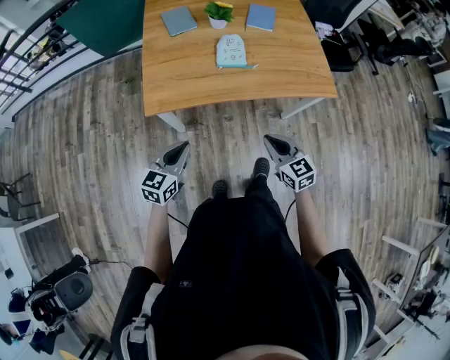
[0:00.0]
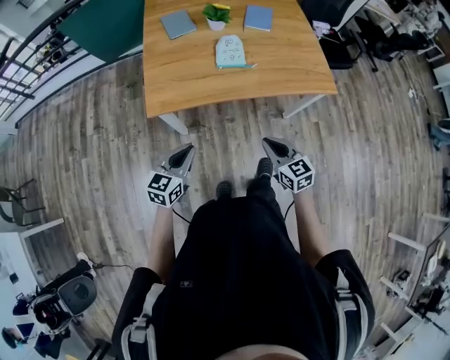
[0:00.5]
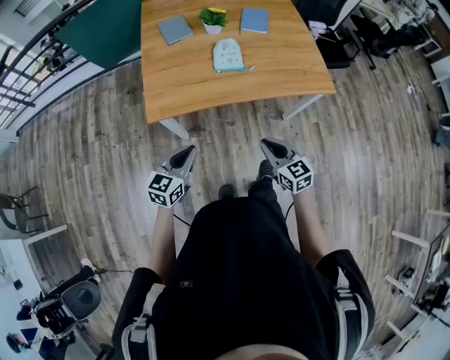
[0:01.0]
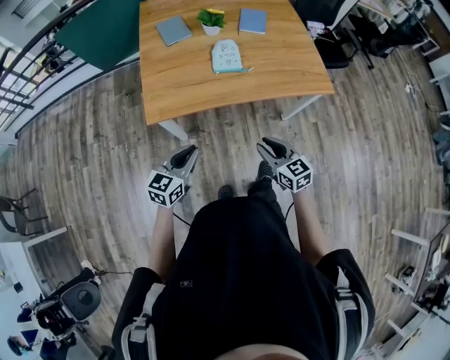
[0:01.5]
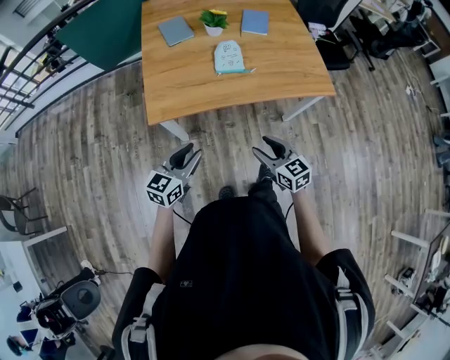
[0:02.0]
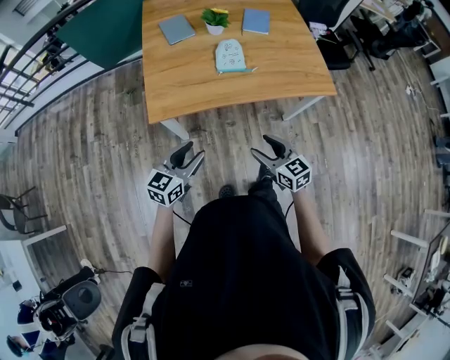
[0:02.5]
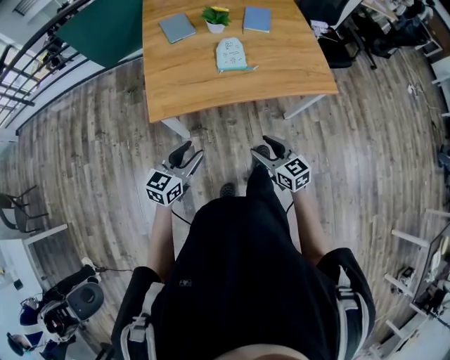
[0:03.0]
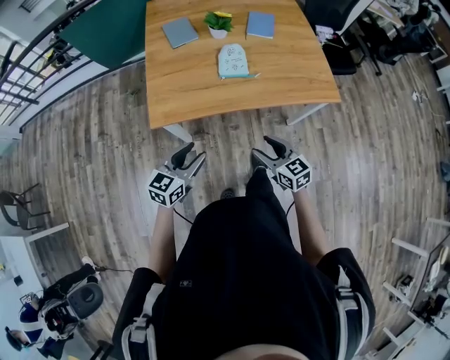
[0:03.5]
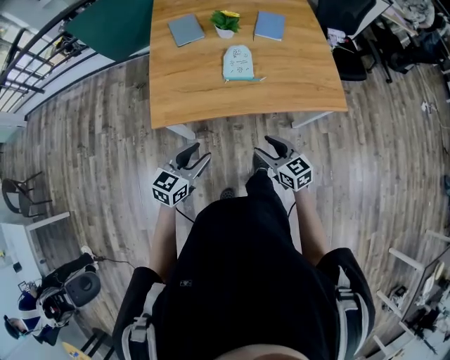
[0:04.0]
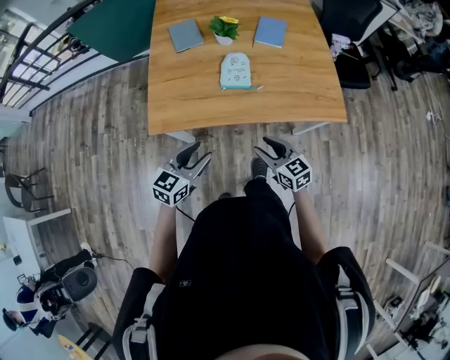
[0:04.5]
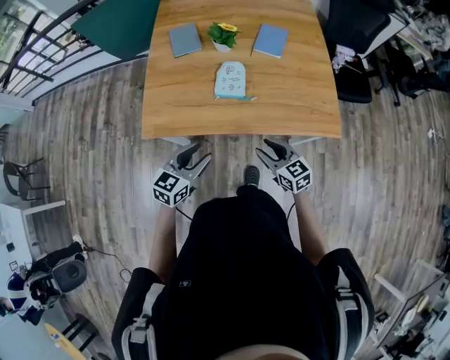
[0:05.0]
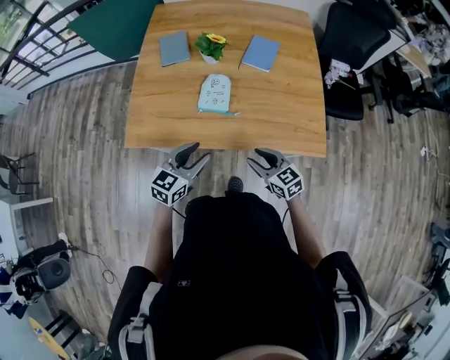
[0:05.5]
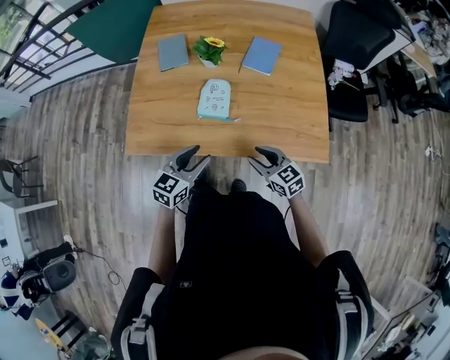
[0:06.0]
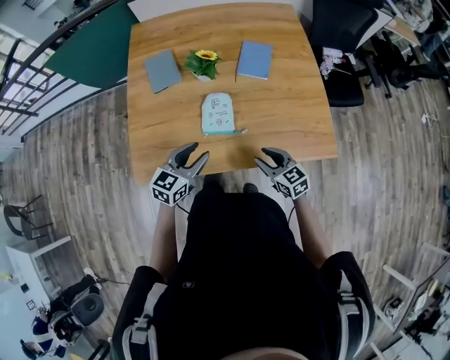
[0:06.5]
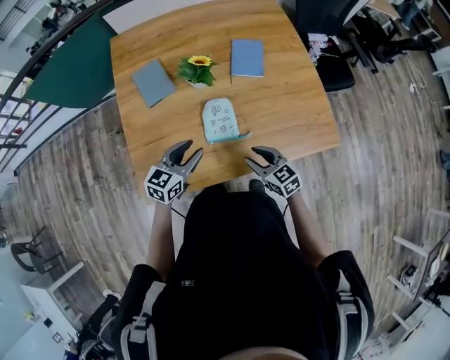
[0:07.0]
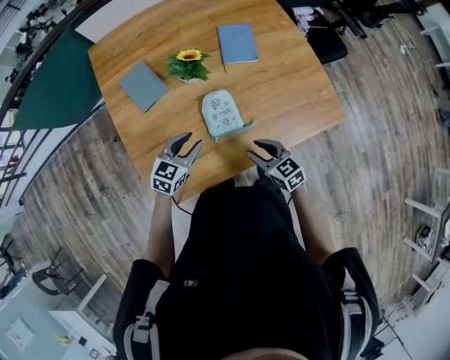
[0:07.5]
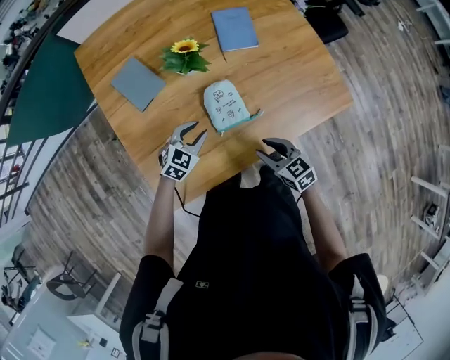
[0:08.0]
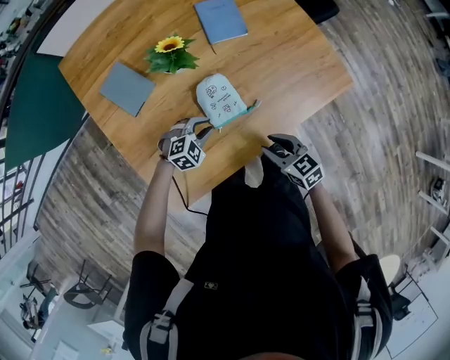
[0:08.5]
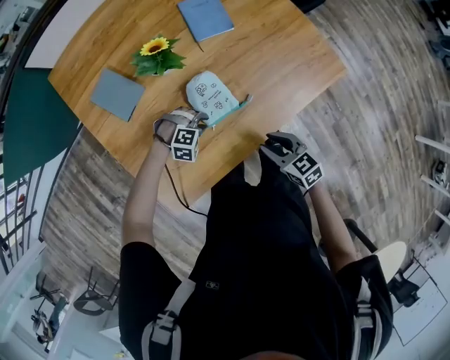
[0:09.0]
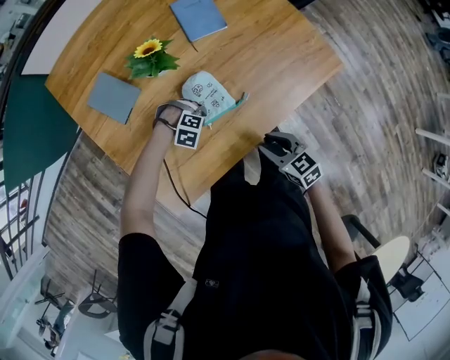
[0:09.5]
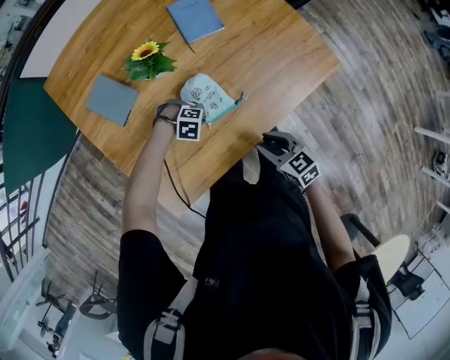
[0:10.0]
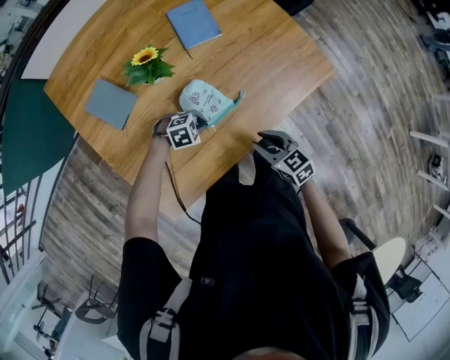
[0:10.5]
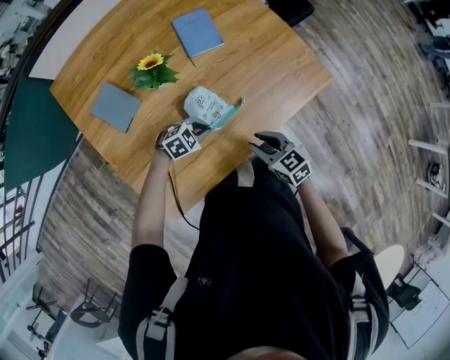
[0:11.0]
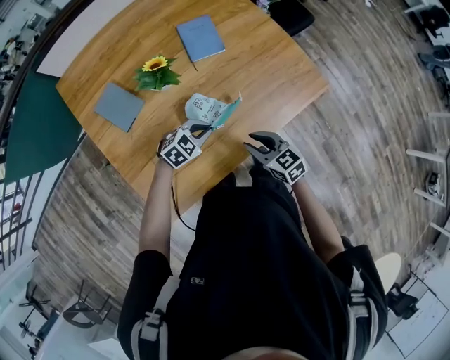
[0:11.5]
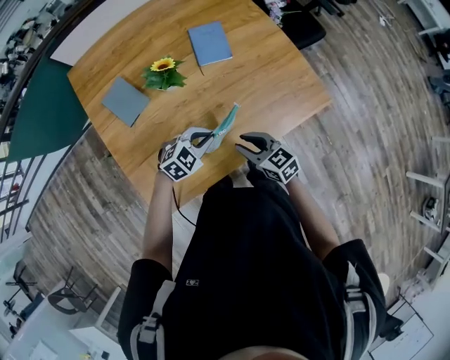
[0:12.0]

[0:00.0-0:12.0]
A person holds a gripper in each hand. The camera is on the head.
0:00.0 to 0:02.0: The right gripper opens up; the left gripper opens its fingers.
0:02.0 to 0:04.0: The two grippers go approximately 5 cm forward.
0:04.0 to 0:06.0: The right gripper travels forward and to the right by approximately 20 cm; the left gripper moves to the right and forward, some 25 cm.
0:06.0 to 0:08.0: The right gripper moves about 15 cm, and rotates approximately 30 degrees; the left gripper shifts by about 30 cm, and changes its angle by roughly 50 degrees.
0:08.0 to 0:10.0: The left gripper moves downward, roughly 10 cm, tilts its fingers some 30 degrees downward, and closes its fingers.
0:10.0 to 0:12.0: The right gripper moves some 10 cm, while the left gripper travels upward by approximately 20 cm, and changes its angle by approximately 60 degrees.

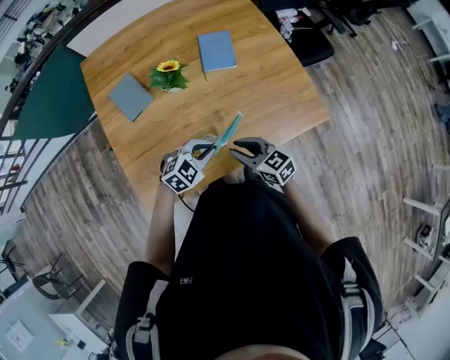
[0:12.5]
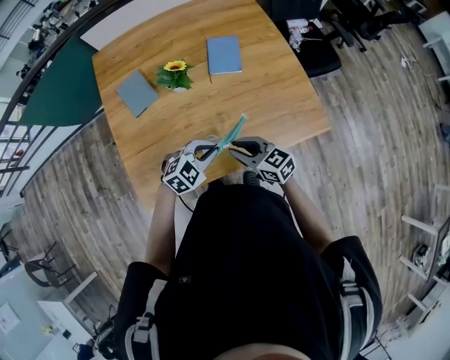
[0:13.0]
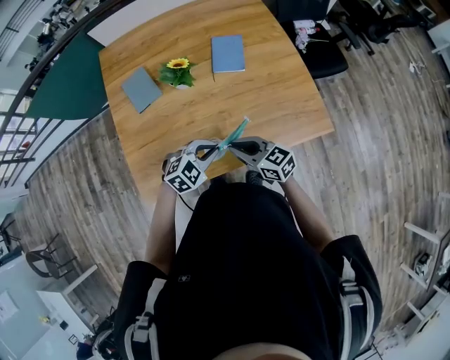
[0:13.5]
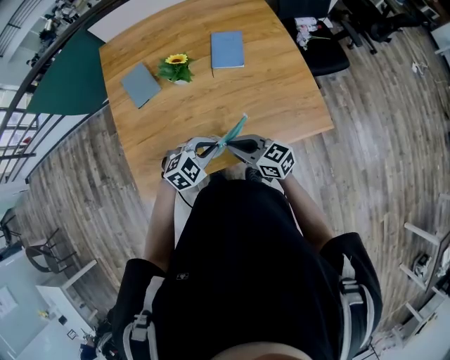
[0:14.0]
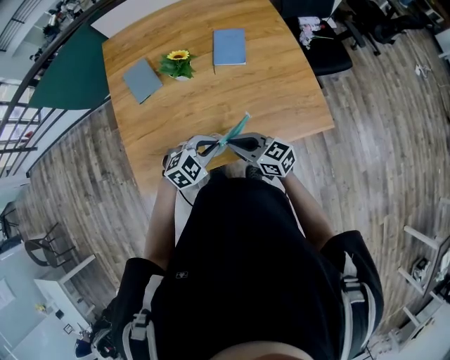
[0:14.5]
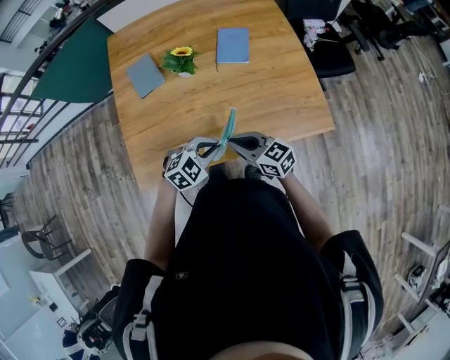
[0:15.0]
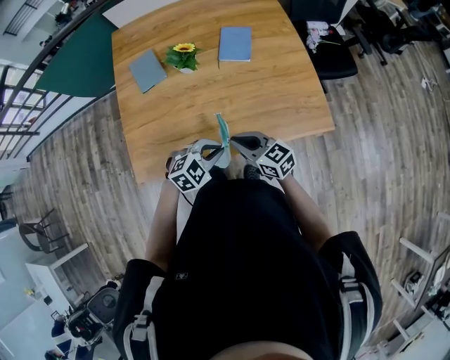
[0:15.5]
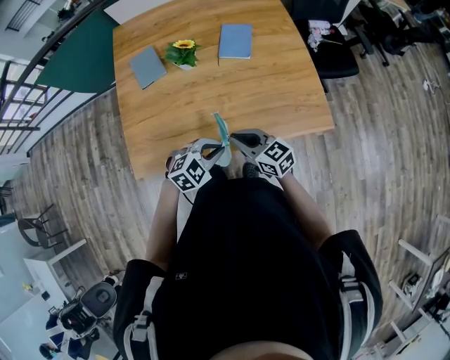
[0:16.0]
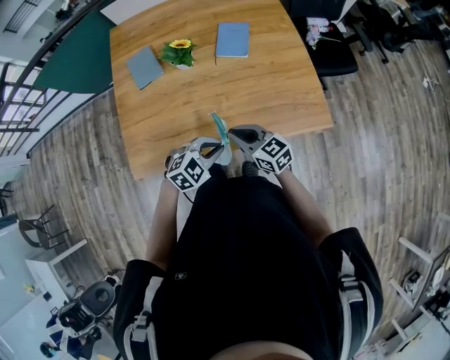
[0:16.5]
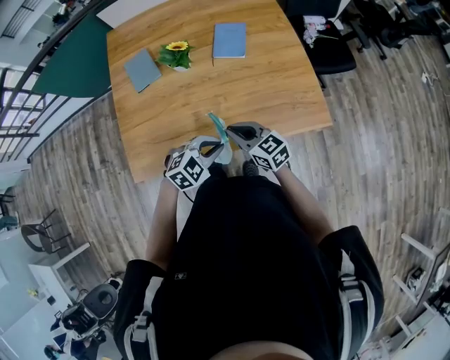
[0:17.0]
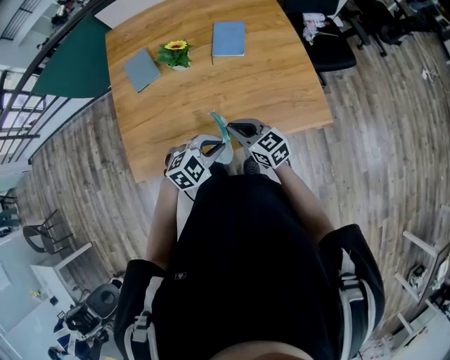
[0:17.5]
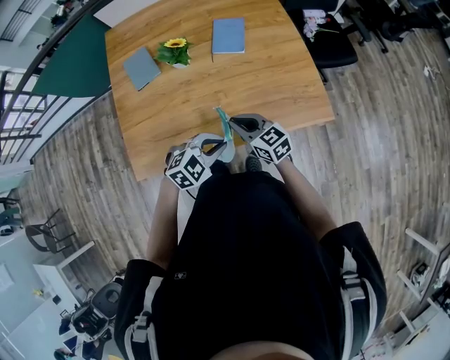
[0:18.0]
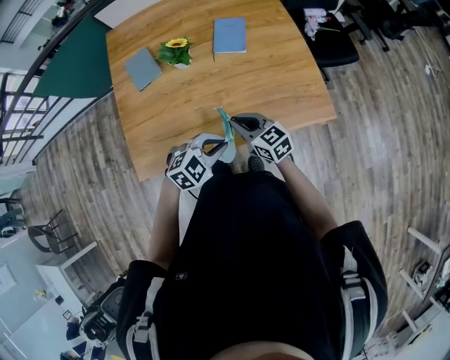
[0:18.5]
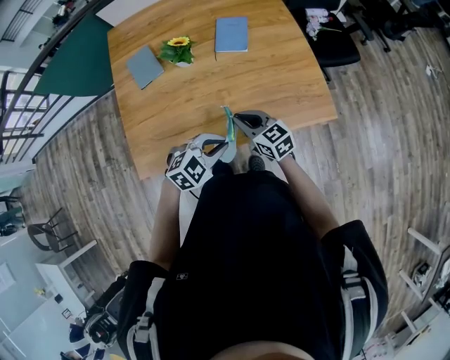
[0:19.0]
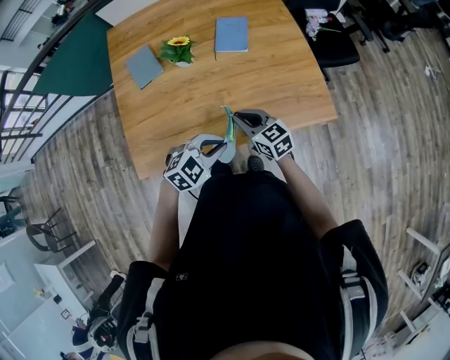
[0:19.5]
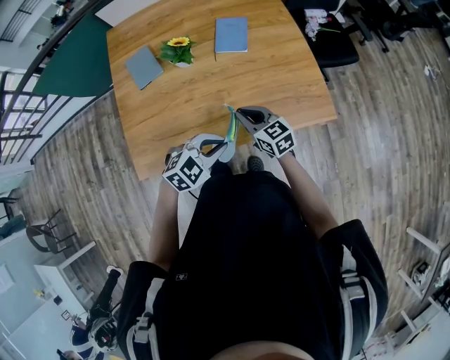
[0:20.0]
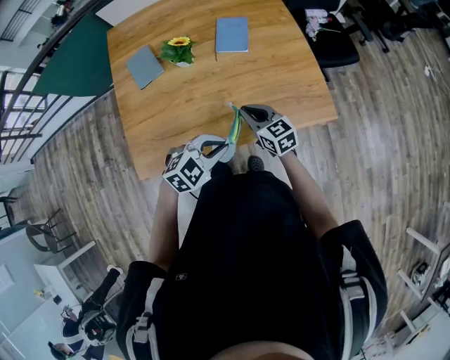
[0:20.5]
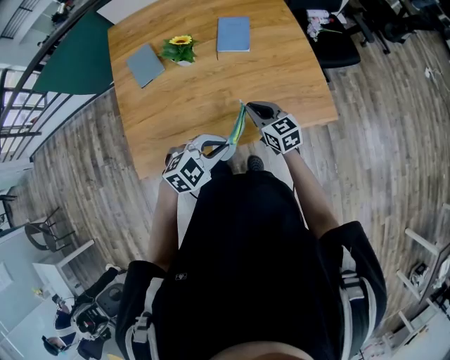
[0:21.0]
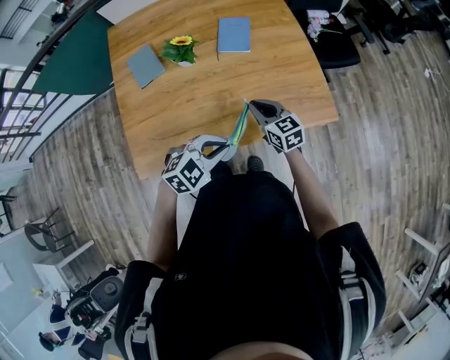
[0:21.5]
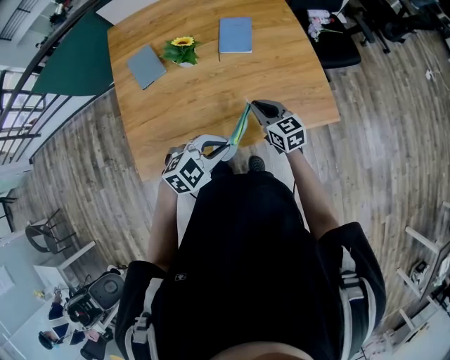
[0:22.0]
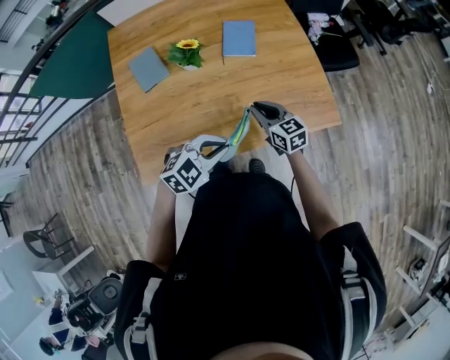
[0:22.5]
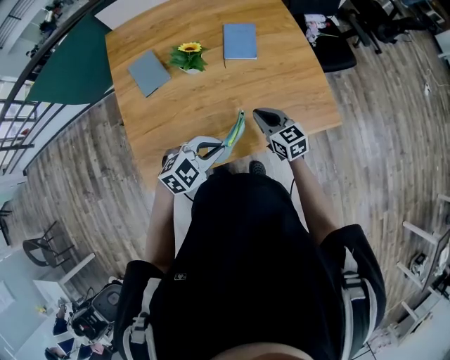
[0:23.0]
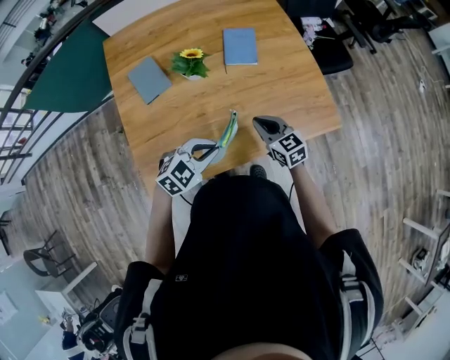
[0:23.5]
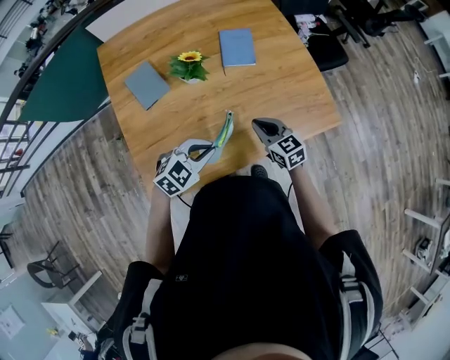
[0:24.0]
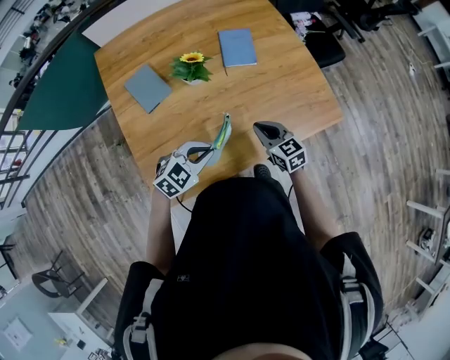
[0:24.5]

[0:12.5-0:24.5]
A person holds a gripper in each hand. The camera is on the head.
0:12.5 to 0:14.5: The left gripper moves roughly 5 cm.
0:14.5 to 0:16.5: The left gripper changes place by roughly 5 cm.
0:16.5 to 0:18.5: The grippers make only small movements.
0:18.5 to 0:20.5: The grippers move only a little.
0:20.5 to 0:22.5: There are only small adjustments of the grippers.
0:22.5 to 0:24.5: The left gripper shifts approximately 15 cm to the left. Meanwhile the right gripper heads to the left, covering approximately 5 cm.

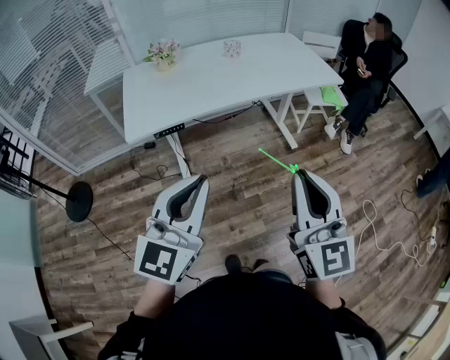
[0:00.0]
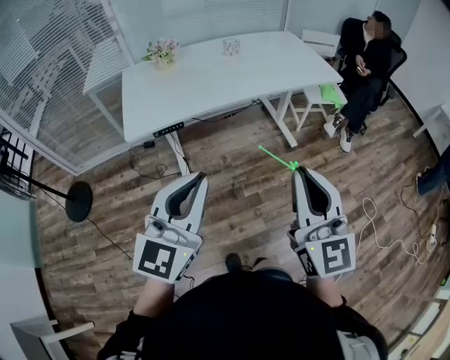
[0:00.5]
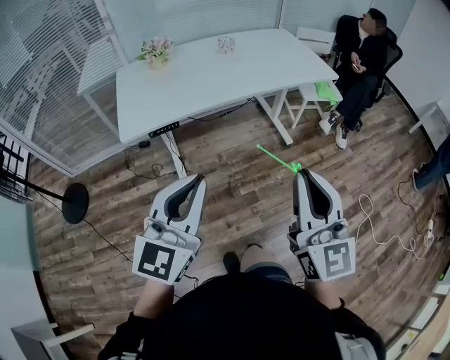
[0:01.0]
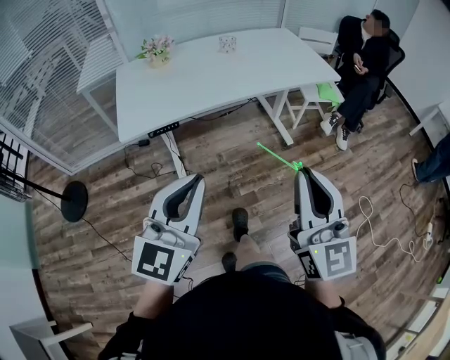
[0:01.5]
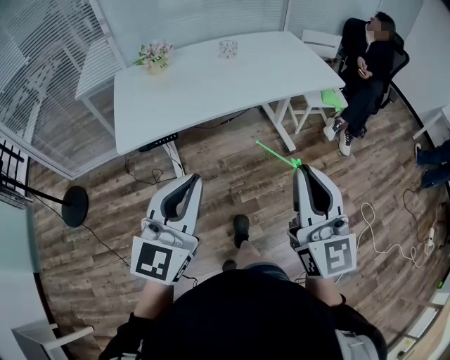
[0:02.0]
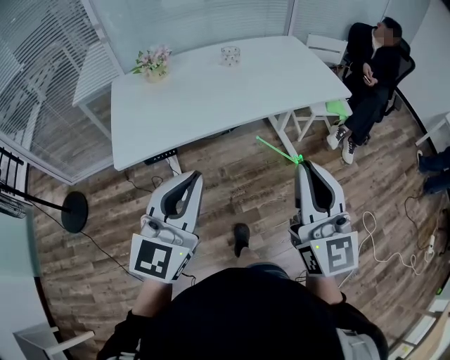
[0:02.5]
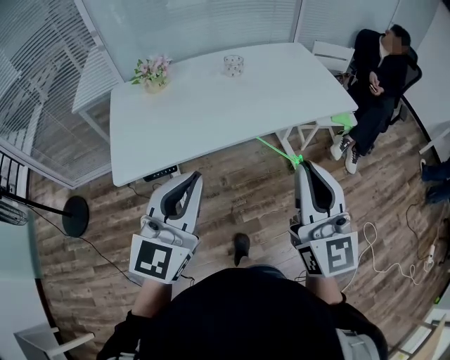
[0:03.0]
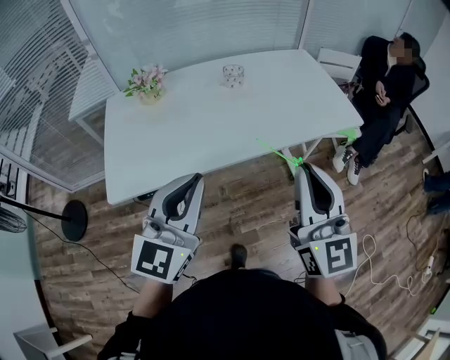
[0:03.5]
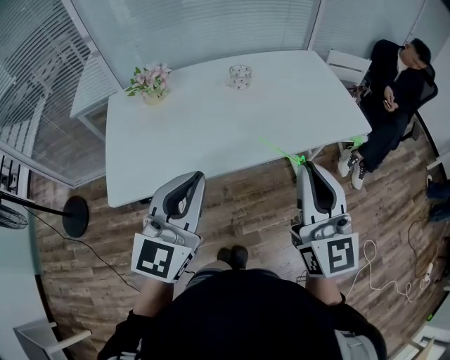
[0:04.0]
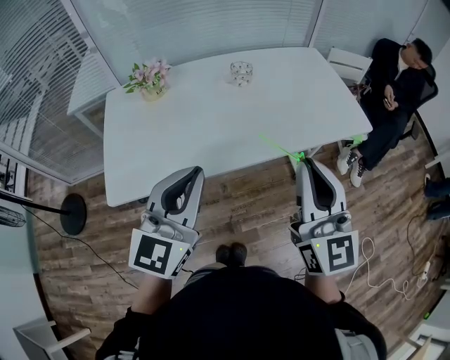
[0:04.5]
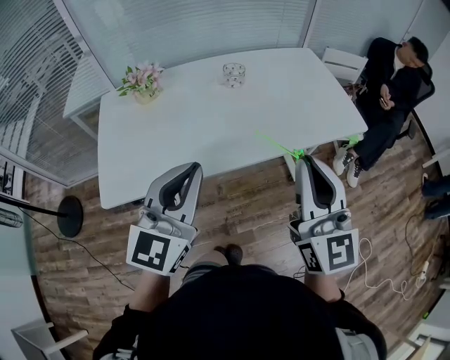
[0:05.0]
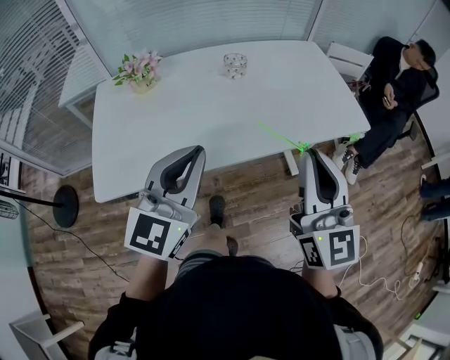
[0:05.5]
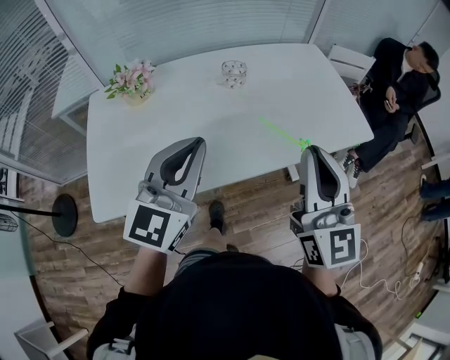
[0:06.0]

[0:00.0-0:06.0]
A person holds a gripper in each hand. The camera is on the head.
0:00.0 to 0:02.0: The two grippers go approximately 5 cm forward.
0:02.0 to 0:04.0: The grippers both shift forward by approximately 25 cm.
0:04.0 to 0:06.0: The grippers both shift forward by roughly 10 cm.
